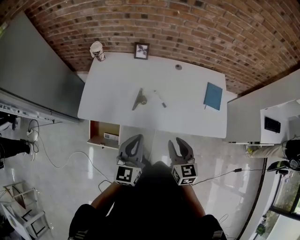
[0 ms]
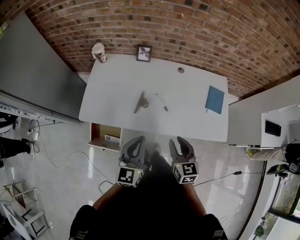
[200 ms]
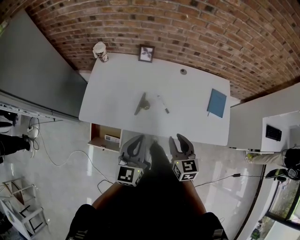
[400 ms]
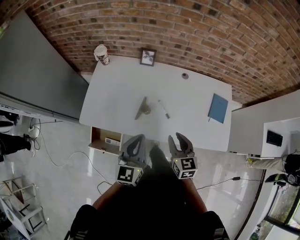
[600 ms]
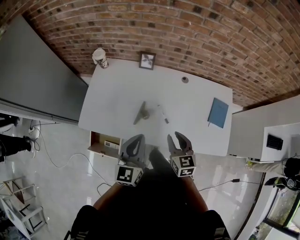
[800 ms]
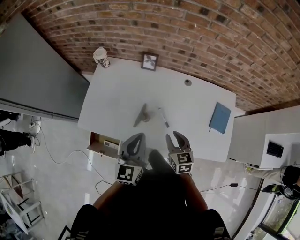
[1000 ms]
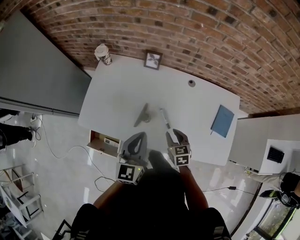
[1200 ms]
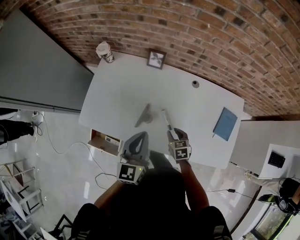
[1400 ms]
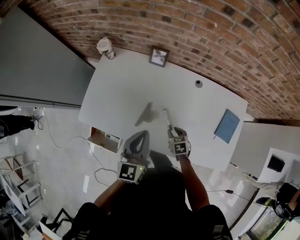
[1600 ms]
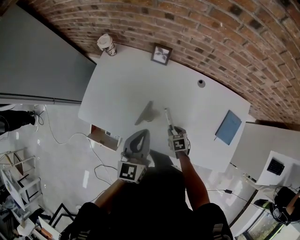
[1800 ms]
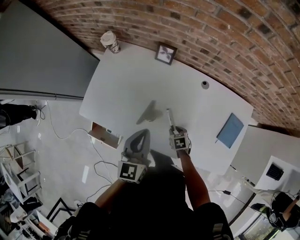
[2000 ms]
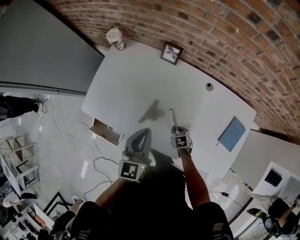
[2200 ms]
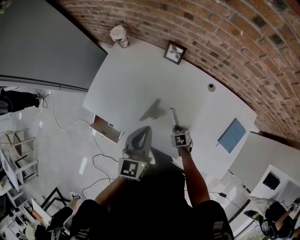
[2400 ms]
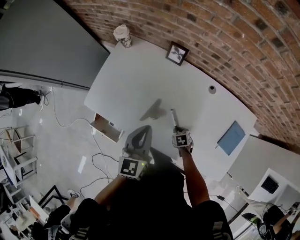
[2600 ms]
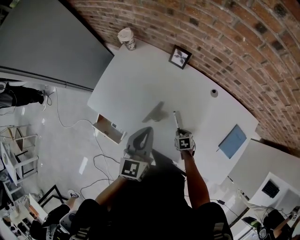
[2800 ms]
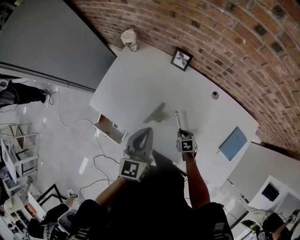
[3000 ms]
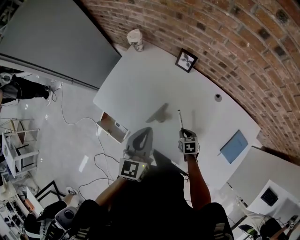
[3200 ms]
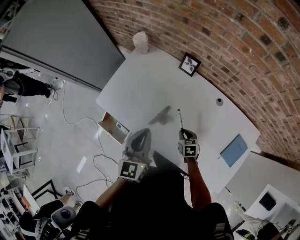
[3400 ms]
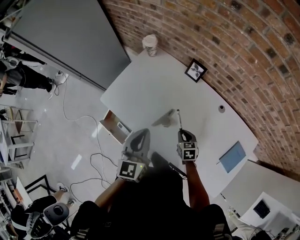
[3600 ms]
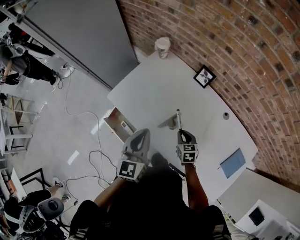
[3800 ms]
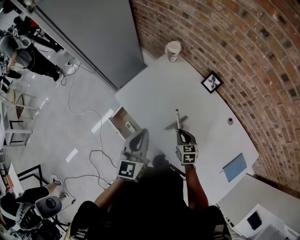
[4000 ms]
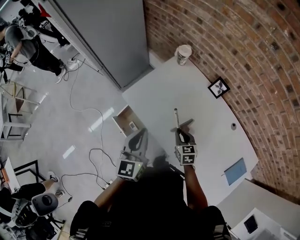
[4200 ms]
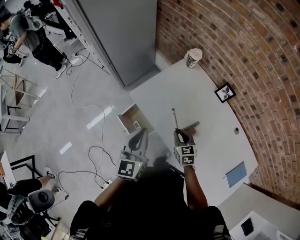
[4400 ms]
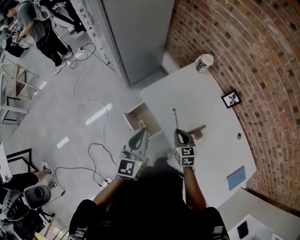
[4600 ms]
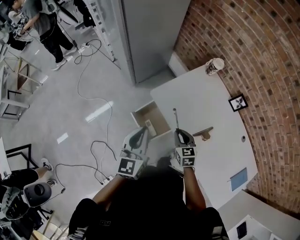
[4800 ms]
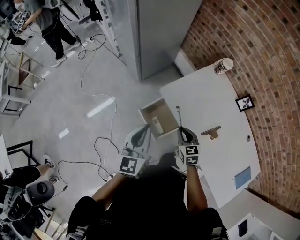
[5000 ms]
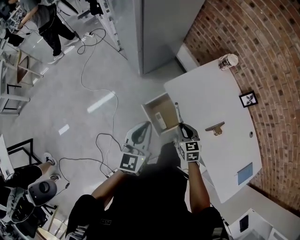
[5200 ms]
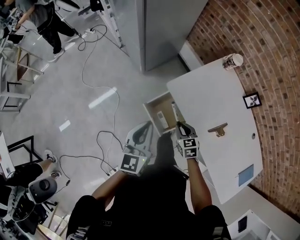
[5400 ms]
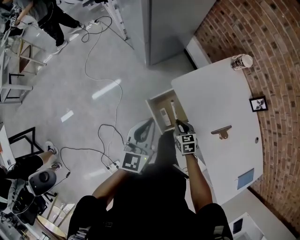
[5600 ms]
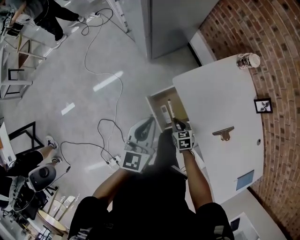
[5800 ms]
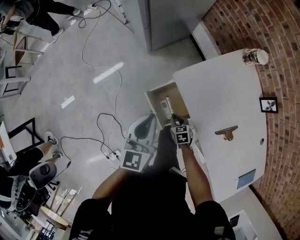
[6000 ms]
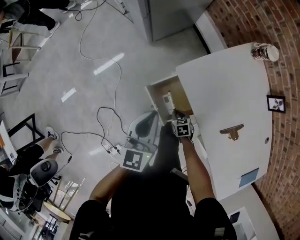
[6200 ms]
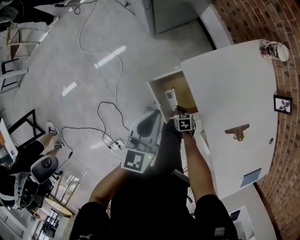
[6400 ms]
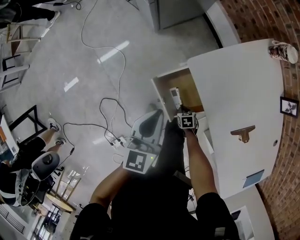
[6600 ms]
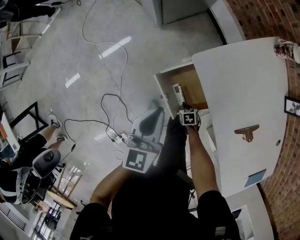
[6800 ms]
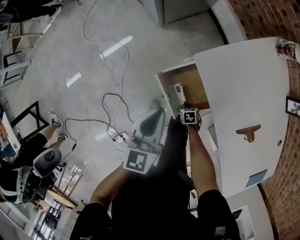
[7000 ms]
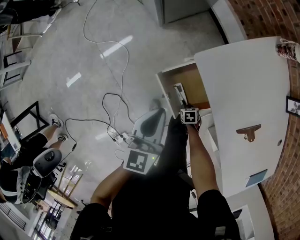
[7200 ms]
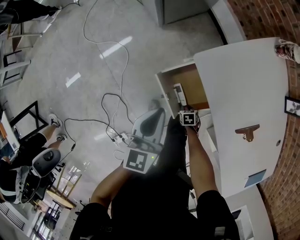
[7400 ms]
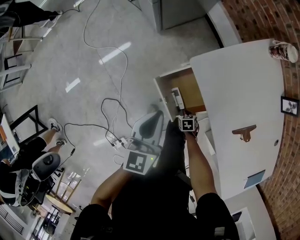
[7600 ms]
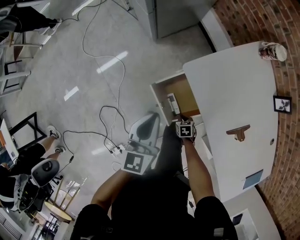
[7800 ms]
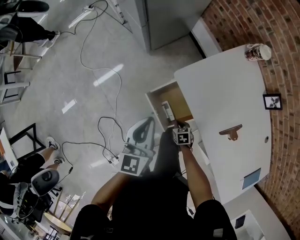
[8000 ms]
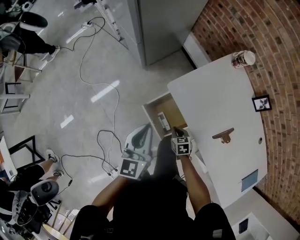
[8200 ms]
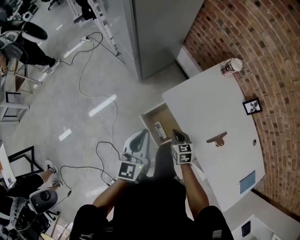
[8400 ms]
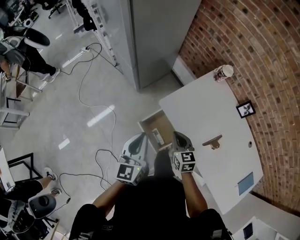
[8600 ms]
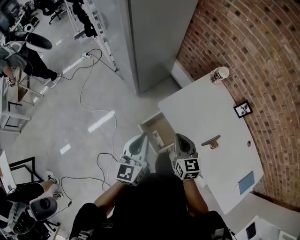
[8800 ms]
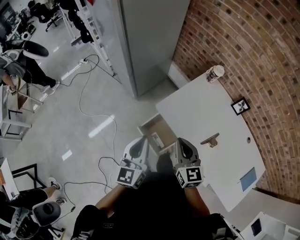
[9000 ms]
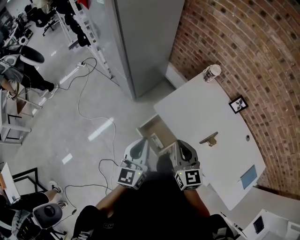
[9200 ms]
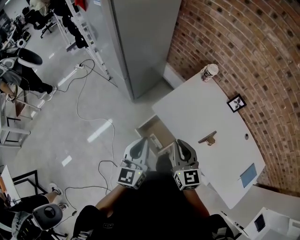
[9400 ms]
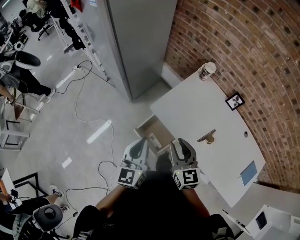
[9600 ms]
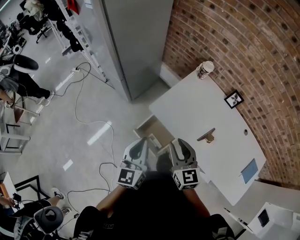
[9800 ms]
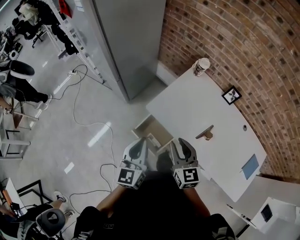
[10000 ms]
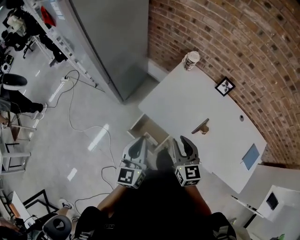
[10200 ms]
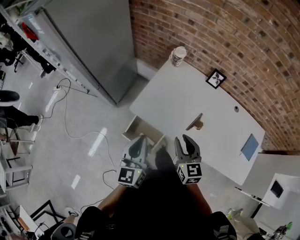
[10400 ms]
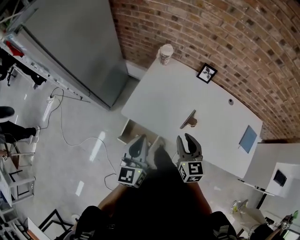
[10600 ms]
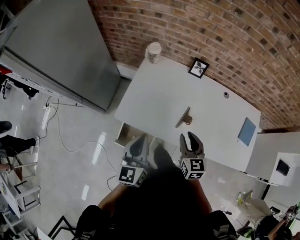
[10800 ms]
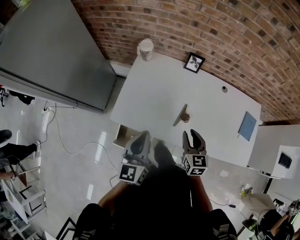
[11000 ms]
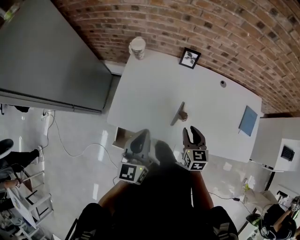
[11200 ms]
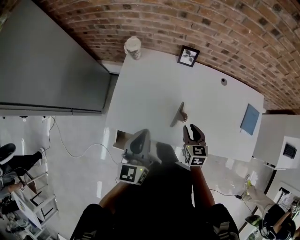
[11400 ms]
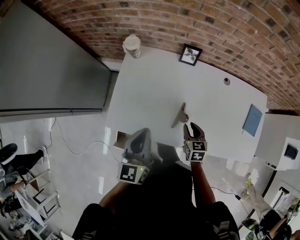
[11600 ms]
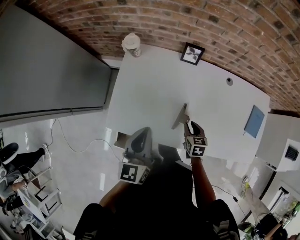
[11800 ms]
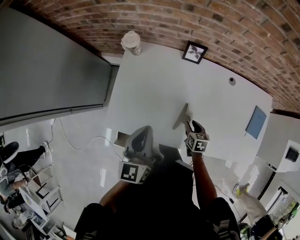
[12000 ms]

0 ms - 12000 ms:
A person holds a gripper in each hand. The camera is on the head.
0 ms - 1600 ms: The right gripper goes about 35 cm downward and forward, and tilts its fingers roughly 40 degrees downward. The left gripper heads forward, covering roughly 20 cm.
1600 ms - 3000 ms: The right gripper shifts roughly 5 cm downward.
3000 ms - 4400 ms: The left gripper moves to the left, about 25 cm, and rotates some 20 degrees, while the right gripper is displaced to the left and upward by about 30 cm, and turns by approximately 40 degrees.
4400 ms - 6000 ms: The left gripper goes approximately 25 cm to the left, downward and forward. The right gripper moves downward and to the left, roughly 35 cm, and swivels some 30 degrees.
6000 ms - 7600 ms: The left gripper travels downward by some 10 cm. The right gripper travels downward by approximately 15 cm.
7600 ms - 9000 ms: The right gripper is displaced upward by about 60 cm, and angles its fingers upward, by approximately 60 degrees. The left gripper moves upward, about 20 cm.
9000 ms - 10400 ms: Both grippers travel together to the right, about 10 cm. The right gripper rotates some 20 degrees, and opens up.
10400 ms - 12000 ms: The right gripper goes about 35 cm downward, to the right and forward, and points its fingers about 30 degrees further downward. The left gripper moves forward and to the right, about 25 cm, and swivels about 20 degrees.

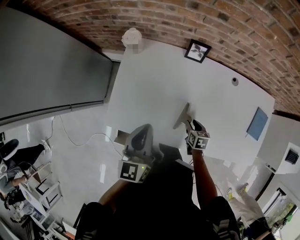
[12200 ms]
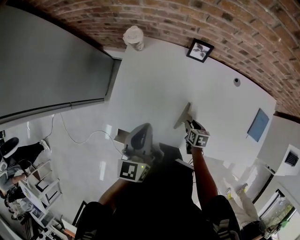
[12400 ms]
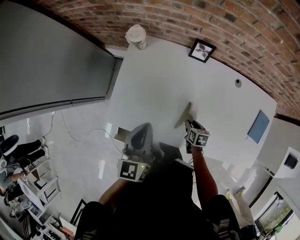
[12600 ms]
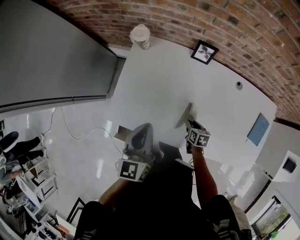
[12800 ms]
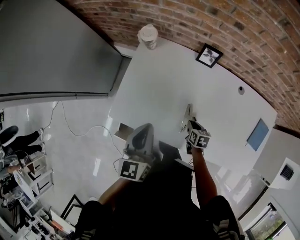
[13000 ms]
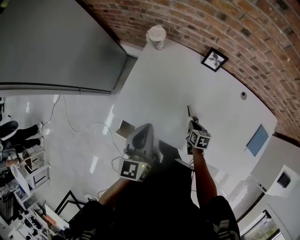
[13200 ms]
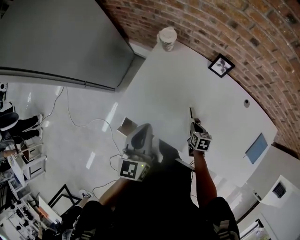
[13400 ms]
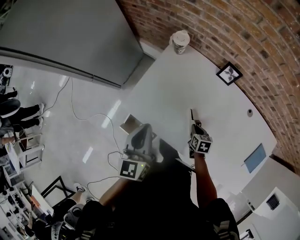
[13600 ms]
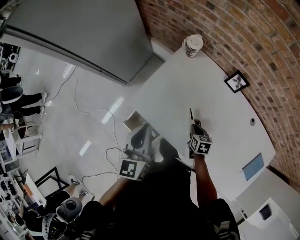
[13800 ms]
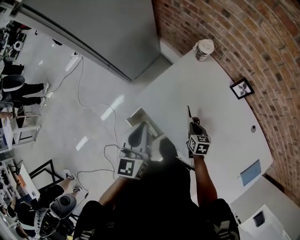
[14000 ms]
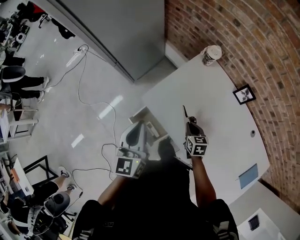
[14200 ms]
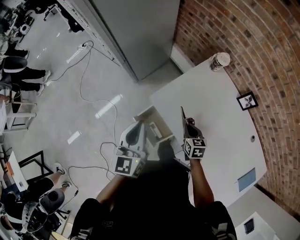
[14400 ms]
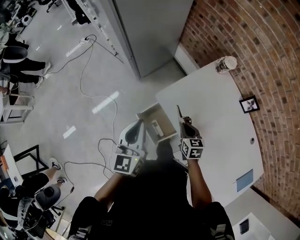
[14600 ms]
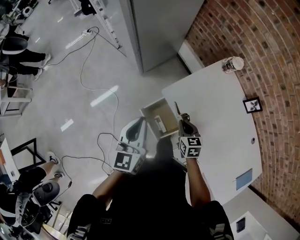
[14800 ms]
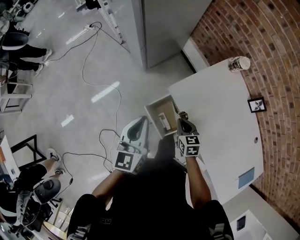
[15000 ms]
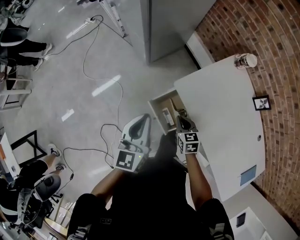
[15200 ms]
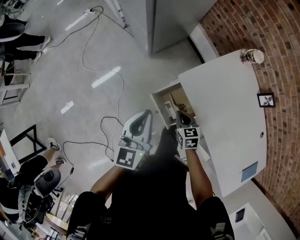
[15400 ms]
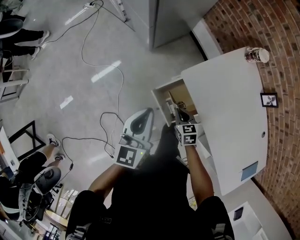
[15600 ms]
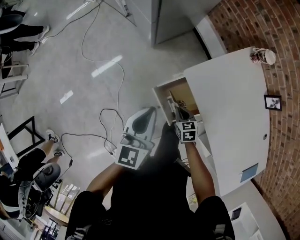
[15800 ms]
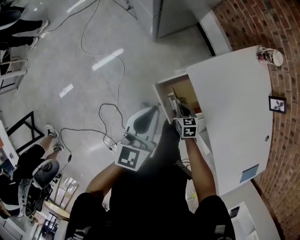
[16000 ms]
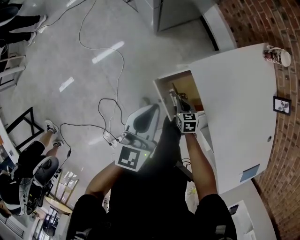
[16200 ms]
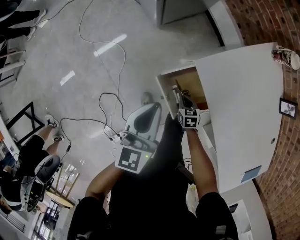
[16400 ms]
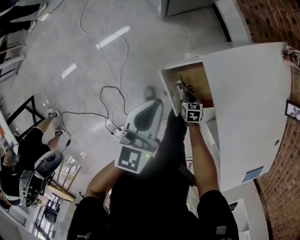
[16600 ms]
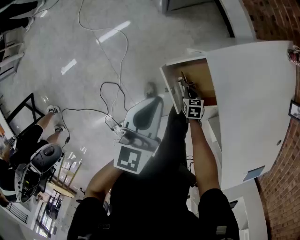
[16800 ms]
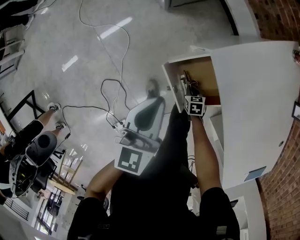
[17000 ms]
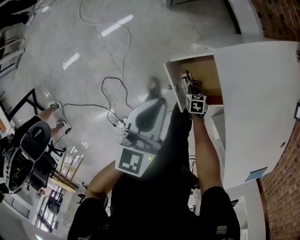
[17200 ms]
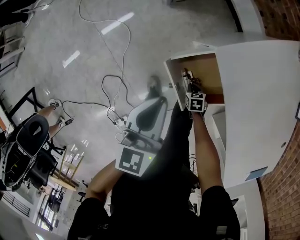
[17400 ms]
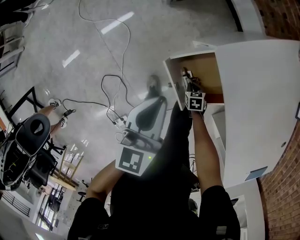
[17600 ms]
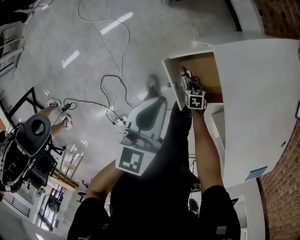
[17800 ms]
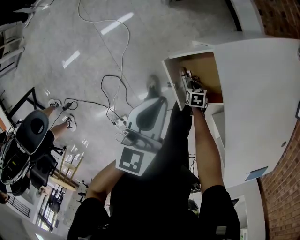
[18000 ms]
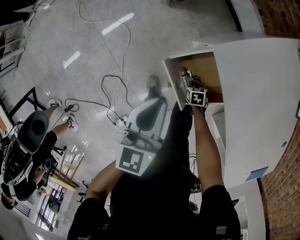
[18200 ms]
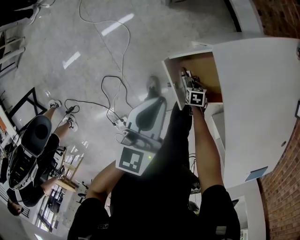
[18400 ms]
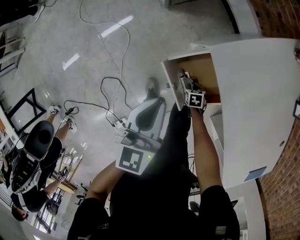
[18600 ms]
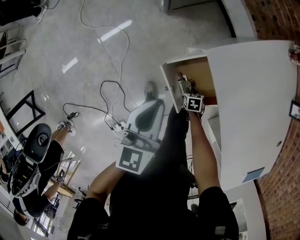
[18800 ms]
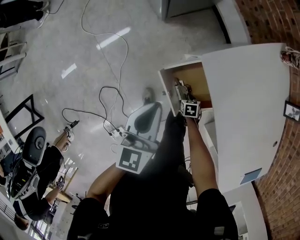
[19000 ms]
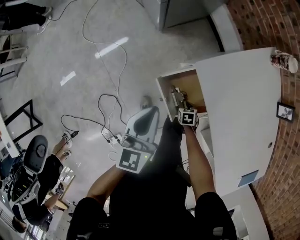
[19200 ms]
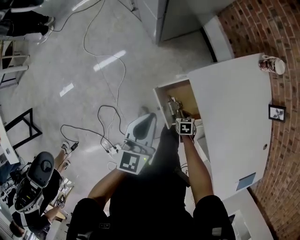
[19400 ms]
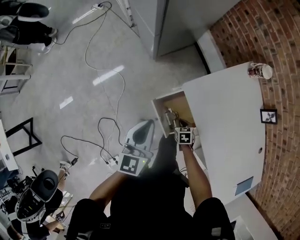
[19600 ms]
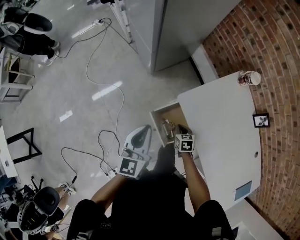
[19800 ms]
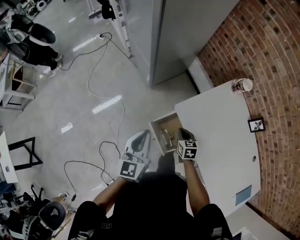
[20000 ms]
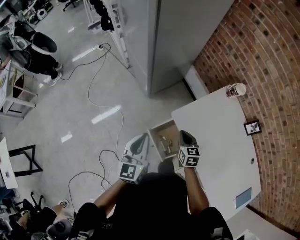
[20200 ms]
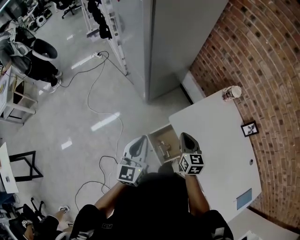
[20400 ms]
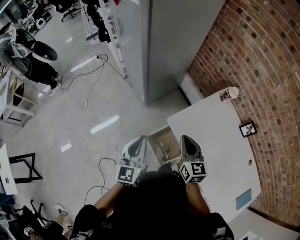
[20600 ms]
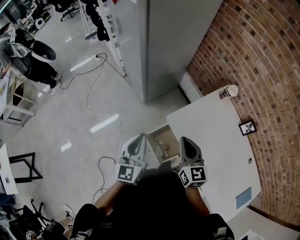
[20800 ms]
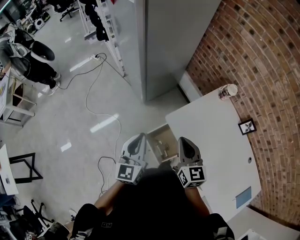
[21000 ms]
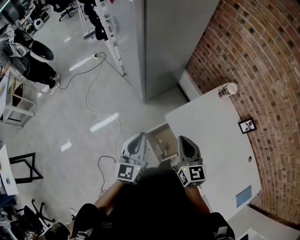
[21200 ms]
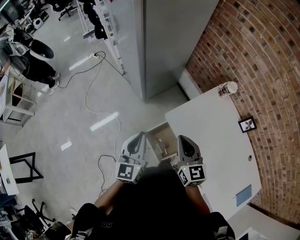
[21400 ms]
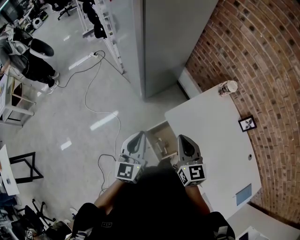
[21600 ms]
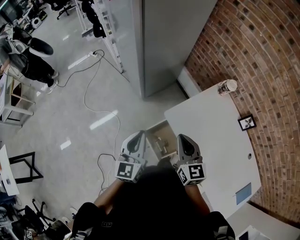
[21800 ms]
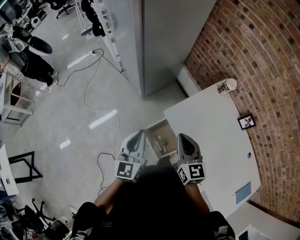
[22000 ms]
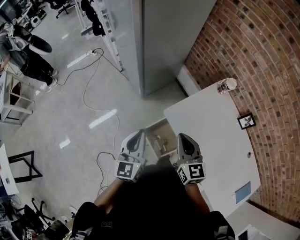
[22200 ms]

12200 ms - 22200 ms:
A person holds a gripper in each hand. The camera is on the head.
12200 ms - 13600 ms: Both grippers move to the left, some 10 cm. The left gripper swivels approximately 20 degrees; the right gripper closes its fingers.
13600 ms - 15000 ms: The two grippers go about 30 cm to the left. The right gripper changes its angle by roughly 40 degrees.
15000 ms - 16400 ms: The right gripper moves downward, roughly 30 cm, while the left gripper moves downward, about 15 cm.
16400 ms - 18000 ms: The right gripper goes some 15 cm downward; the left gripper heads downward, covering some 5 cm.
18000 ms - 19400 ms: The right gripper moves upward, roughly 10 cm. Meanwhile the left gripper shifts some 5 cm upward.
19400 ms - 20800 ms: The right gripper is displaced upward by some 50 cm, and tips its fingers upward by about 60 degrees. Meanwhile the left gripper shifts some 15 cm upward.
20800 ms - 22200 ms: The two grippers keep their place.

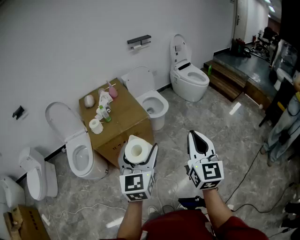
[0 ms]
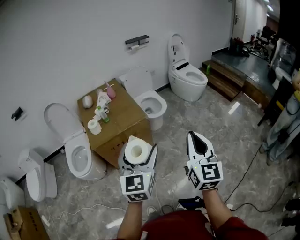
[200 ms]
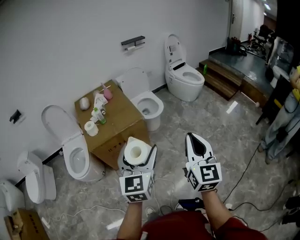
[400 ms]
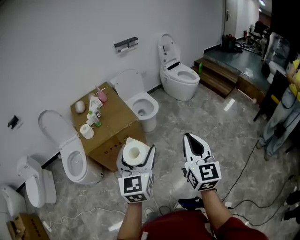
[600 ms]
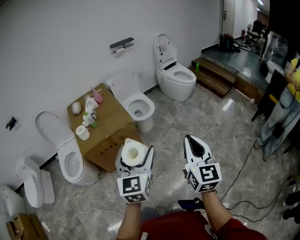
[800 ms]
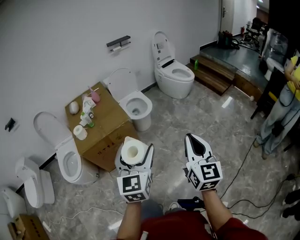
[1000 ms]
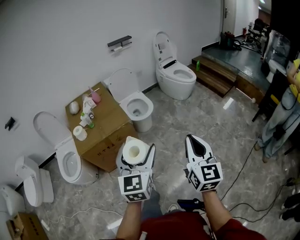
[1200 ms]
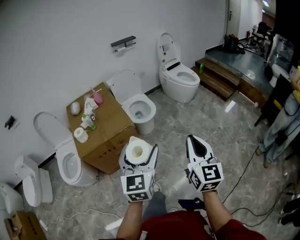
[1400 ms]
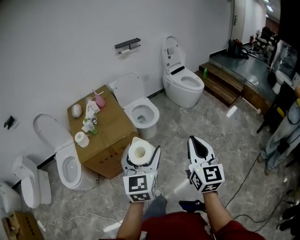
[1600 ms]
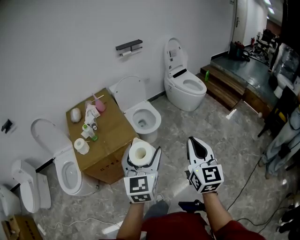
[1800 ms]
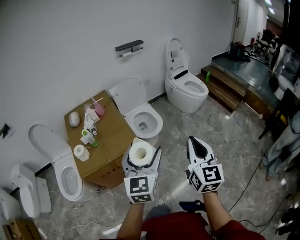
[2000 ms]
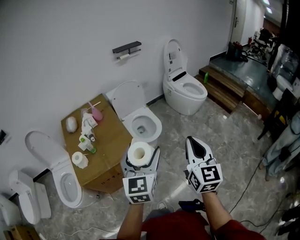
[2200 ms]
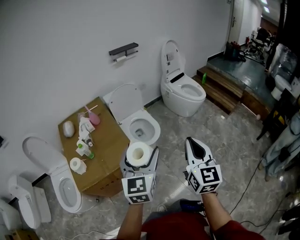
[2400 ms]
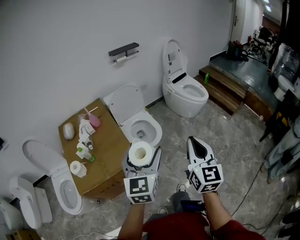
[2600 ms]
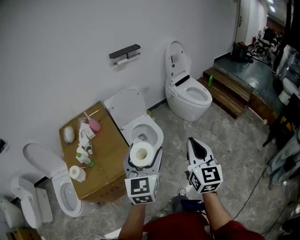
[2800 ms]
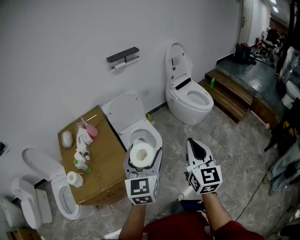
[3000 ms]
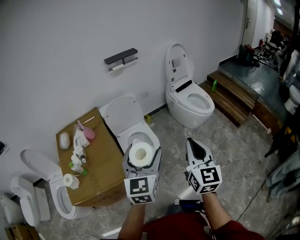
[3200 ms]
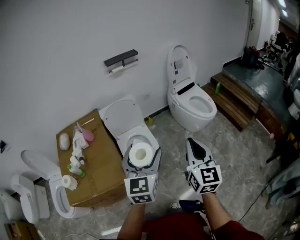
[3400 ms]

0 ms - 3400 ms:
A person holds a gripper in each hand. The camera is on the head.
0 ms - 1600 ms: Both grippers travel together forward and to the right, approximately 20 cm.
1600 ms - 3400 ms: The two grippers travel together, forward, approximately 60 cm.
